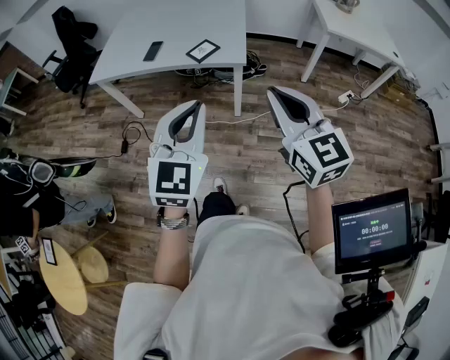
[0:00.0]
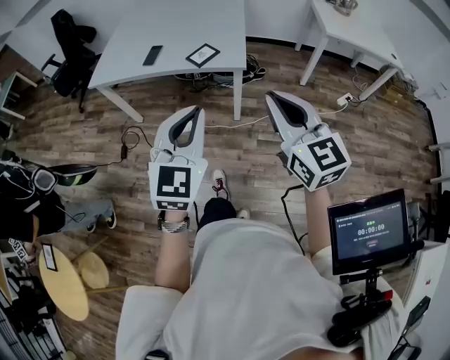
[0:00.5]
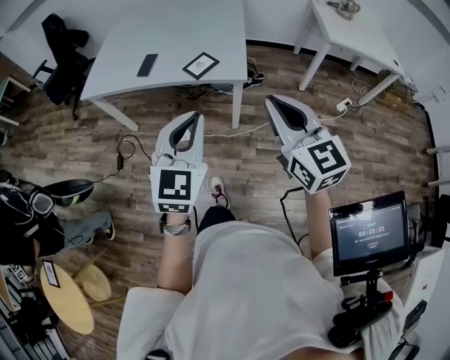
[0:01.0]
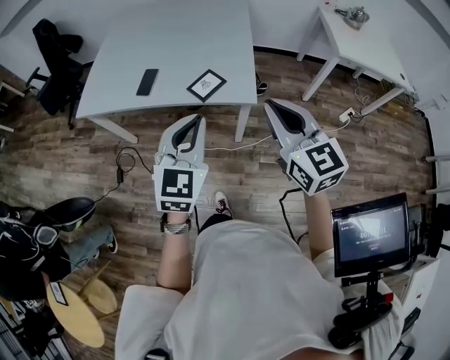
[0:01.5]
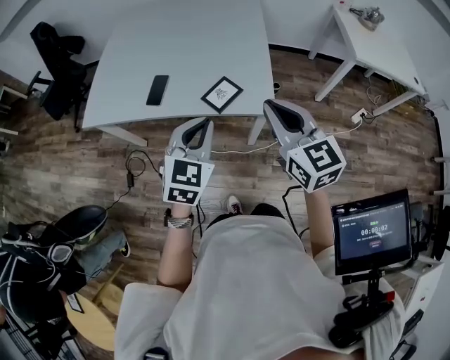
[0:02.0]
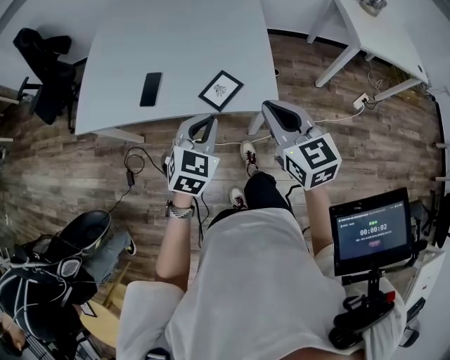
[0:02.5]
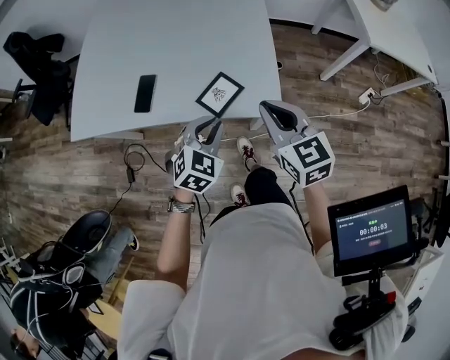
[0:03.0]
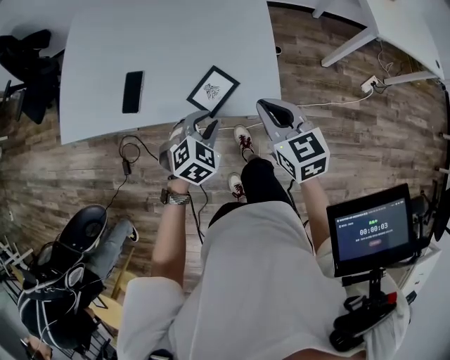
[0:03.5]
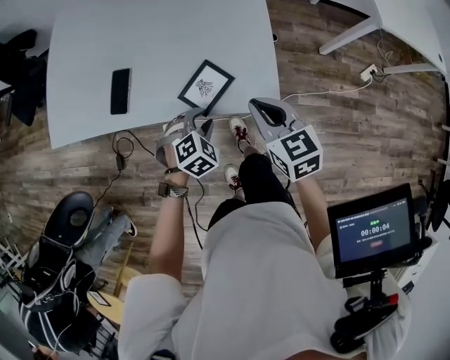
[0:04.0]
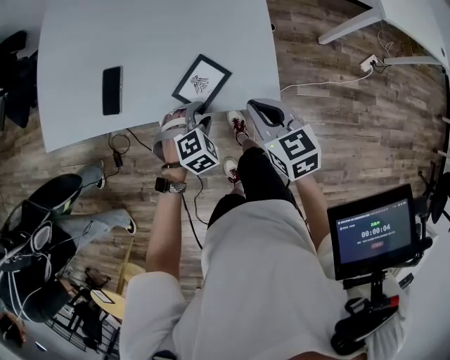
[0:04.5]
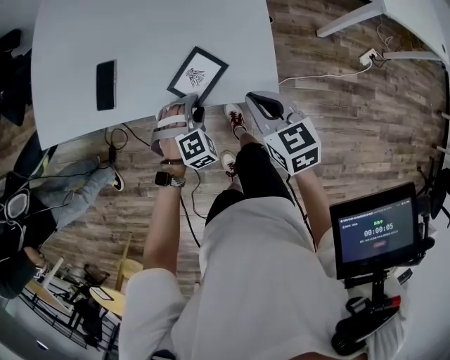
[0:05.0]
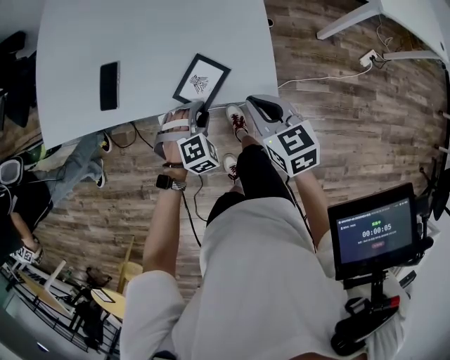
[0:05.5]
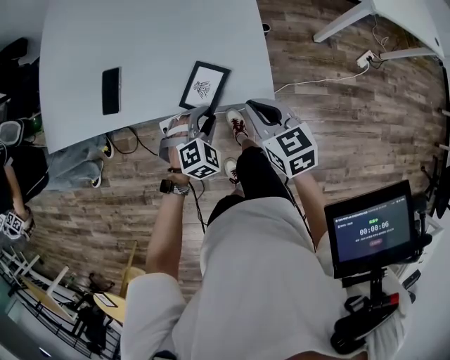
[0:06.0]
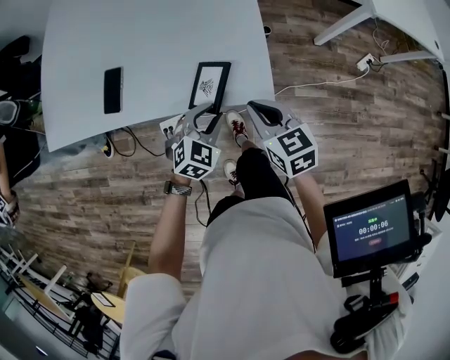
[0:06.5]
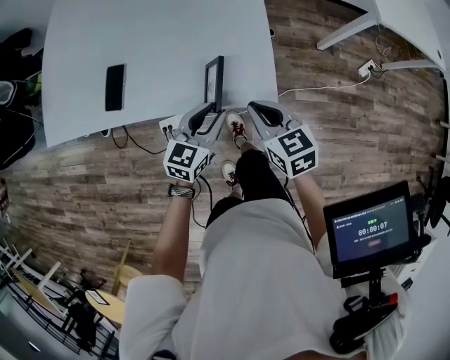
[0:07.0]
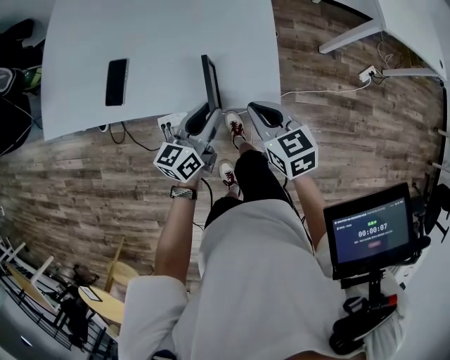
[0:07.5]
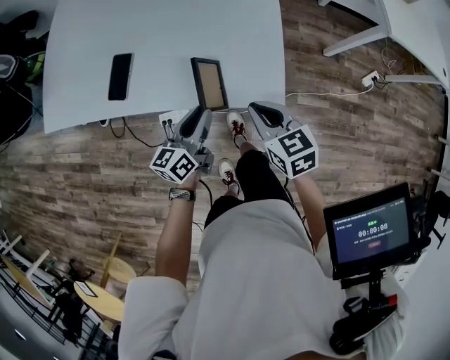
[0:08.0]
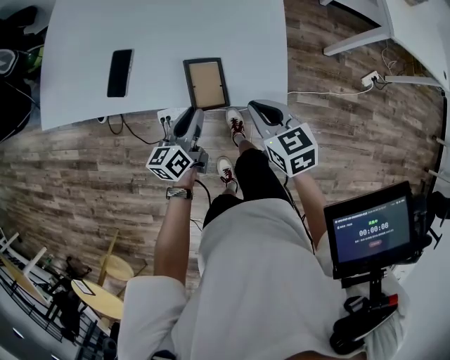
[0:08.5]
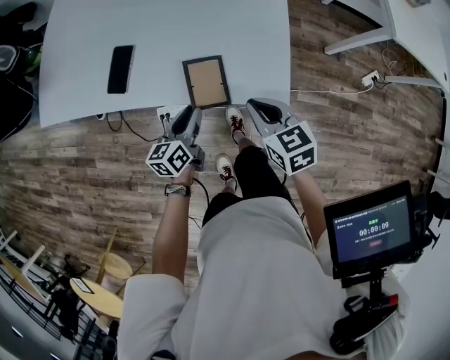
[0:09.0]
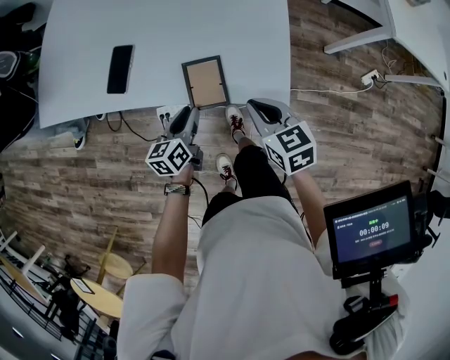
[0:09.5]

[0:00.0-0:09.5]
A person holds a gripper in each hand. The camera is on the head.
0:00.0 to 0:02.0: Both grippers move forward, approximately 35 cm.
0:02.0 to 0:04.0: Both grippers travel together downward and forward, roughly 30 cm. The right gripper swivels about 20 degrees; the left gripper tips its fingers downward by some 40 degrees, and opens its fingers.
0:05.5 to 0:07.5: The left gripper is displaced upward by roughly 10 cm, and twists approximately 80 degrees counterclockwise, seen from behind.
0:07.5 to 0:09.5: The left gripper goes roughly 10 cm to the left and downward, and swivels about 20 degrees.

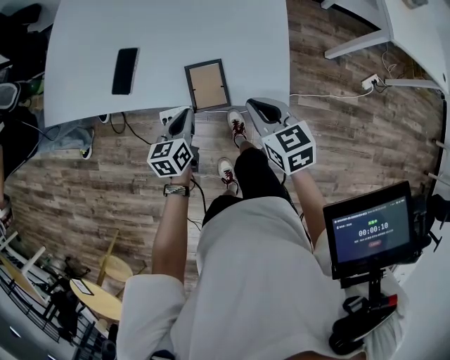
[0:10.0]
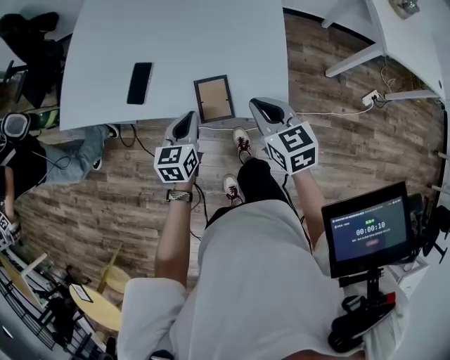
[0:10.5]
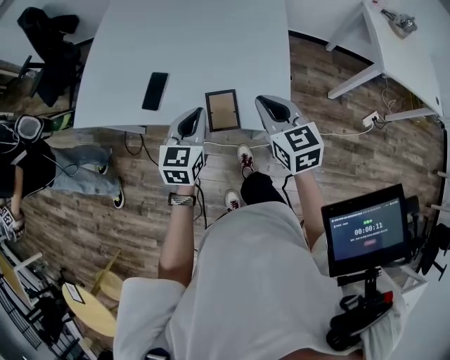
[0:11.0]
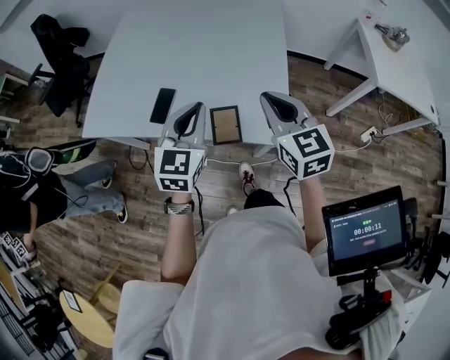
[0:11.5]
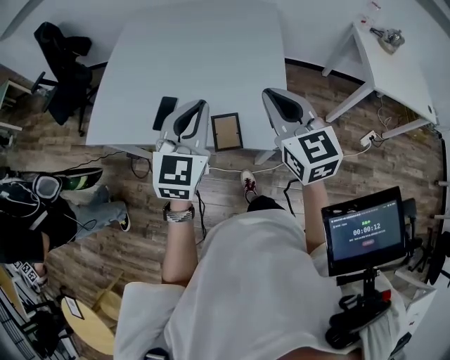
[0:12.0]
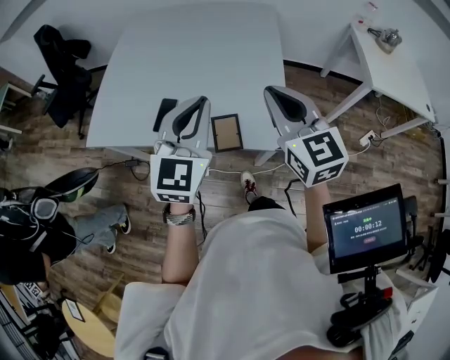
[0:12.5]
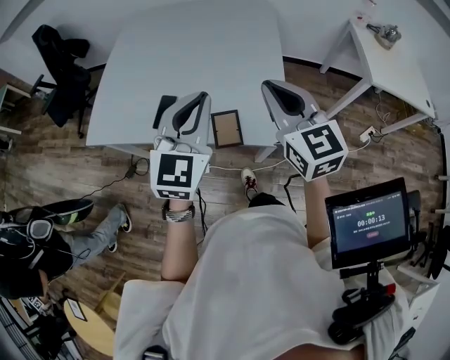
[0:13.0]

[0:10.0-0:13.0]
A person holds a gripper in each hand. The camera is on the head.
0:10.0 to 0:11.5: Both grippers move upward, some 25 cm. The right gripper changes its angle by approximately 30 degrees, while the left gripper swivels roughly 40 degrees.
0:11.5 to 0:13.0: The two grippers go roughly 10 cm upward.

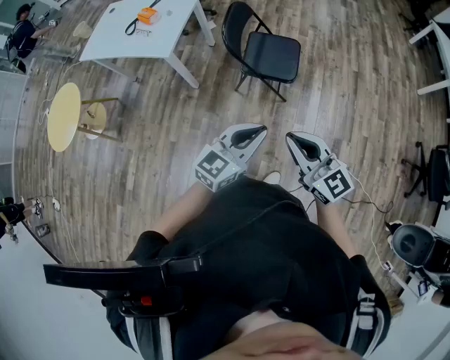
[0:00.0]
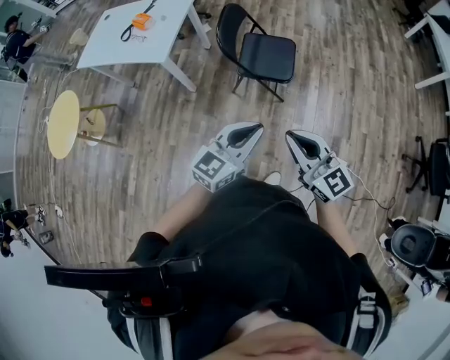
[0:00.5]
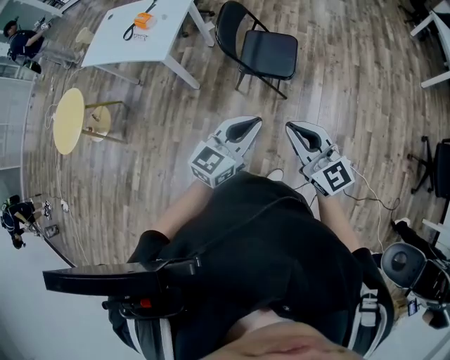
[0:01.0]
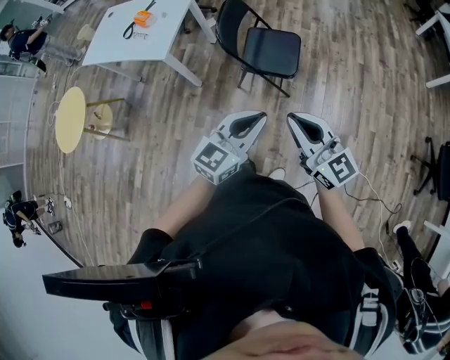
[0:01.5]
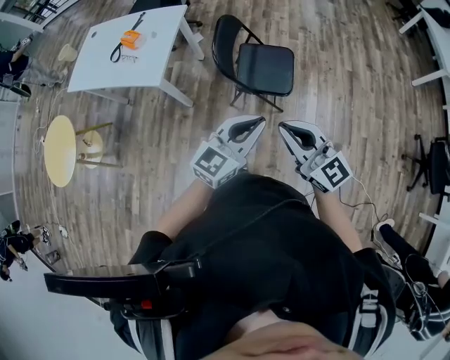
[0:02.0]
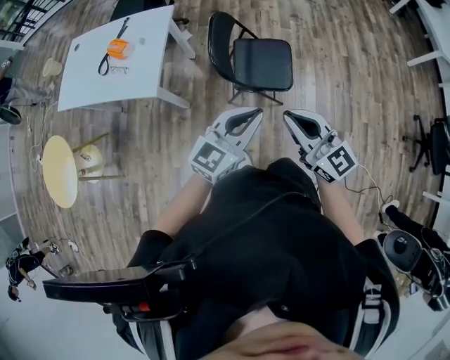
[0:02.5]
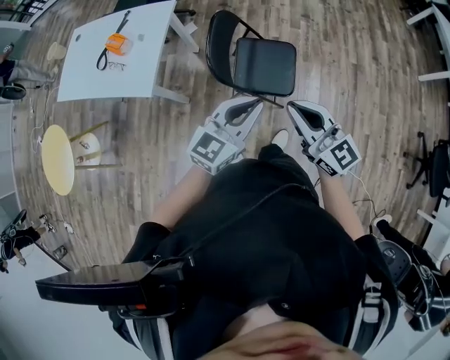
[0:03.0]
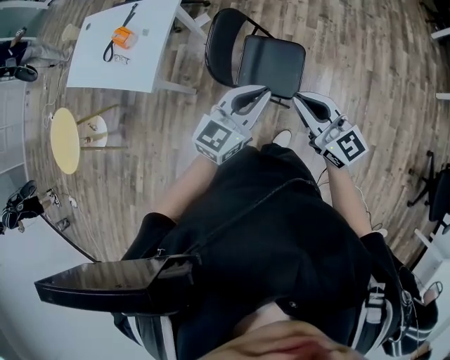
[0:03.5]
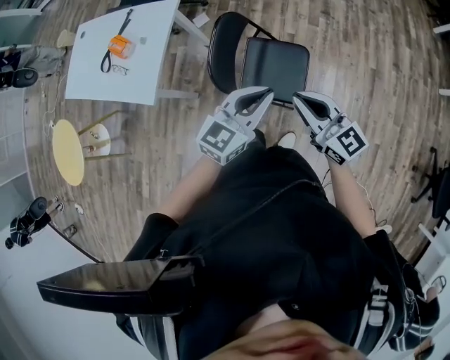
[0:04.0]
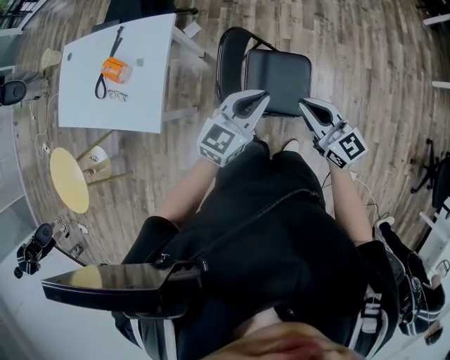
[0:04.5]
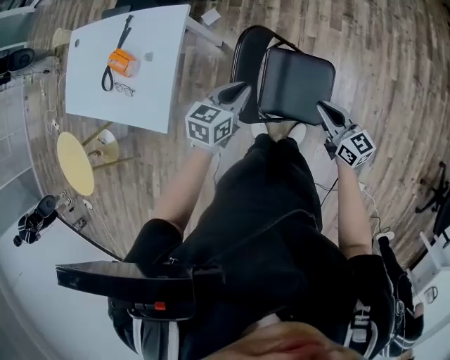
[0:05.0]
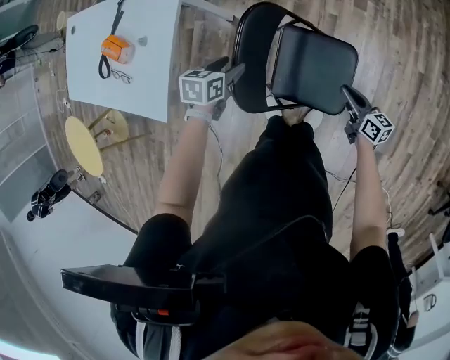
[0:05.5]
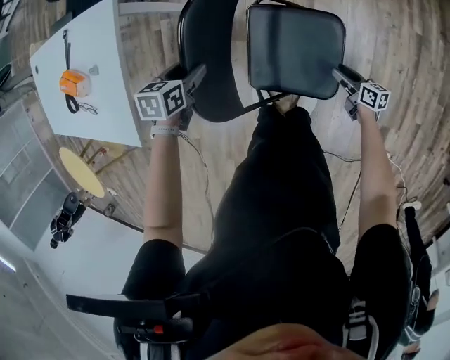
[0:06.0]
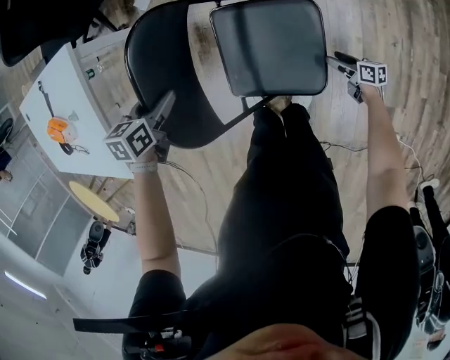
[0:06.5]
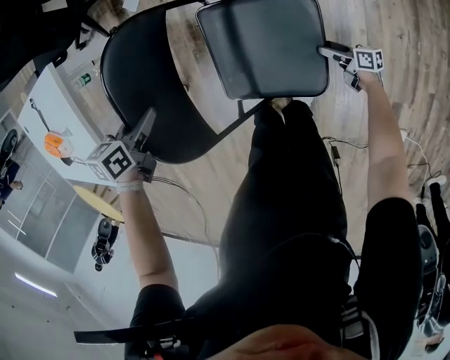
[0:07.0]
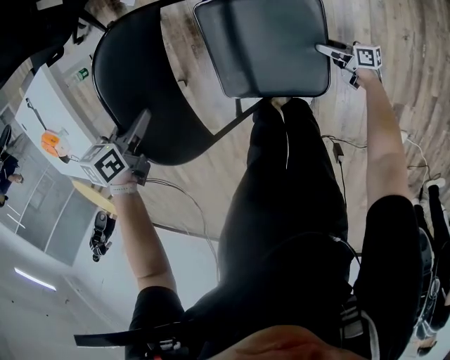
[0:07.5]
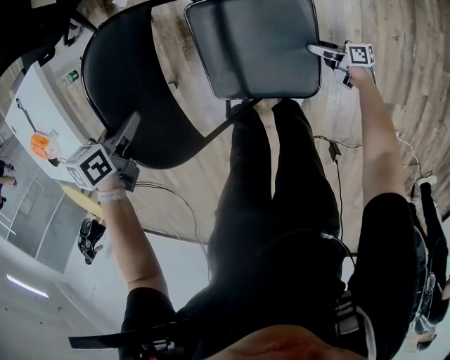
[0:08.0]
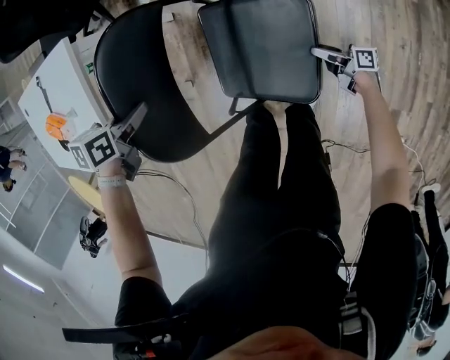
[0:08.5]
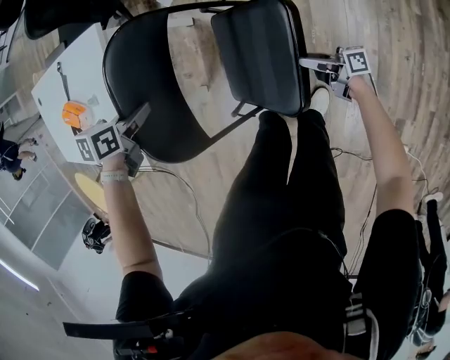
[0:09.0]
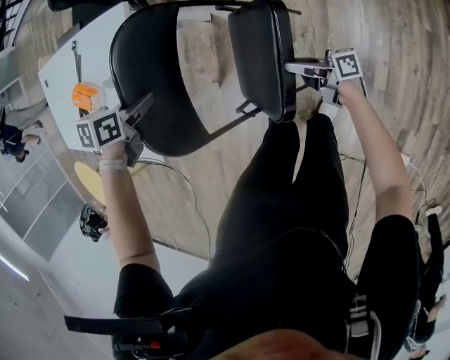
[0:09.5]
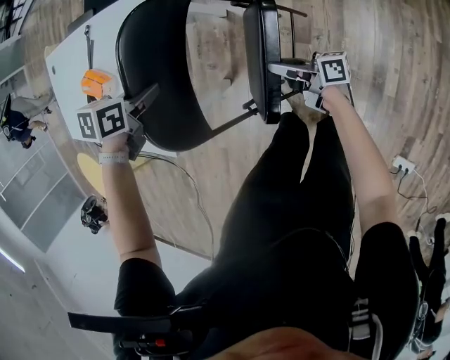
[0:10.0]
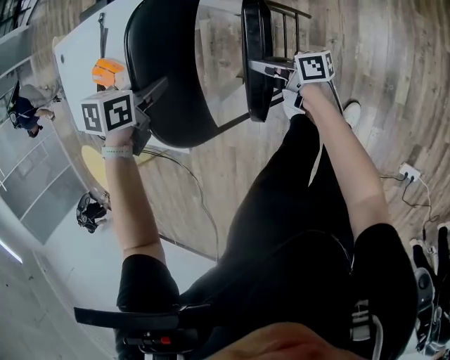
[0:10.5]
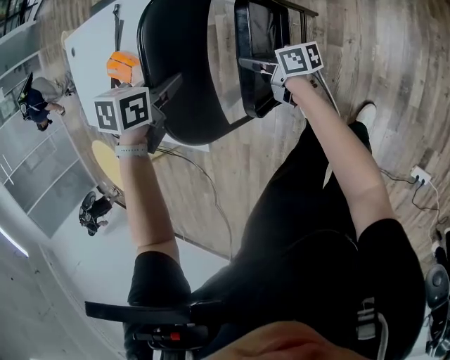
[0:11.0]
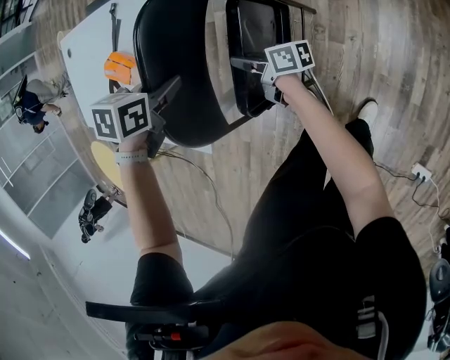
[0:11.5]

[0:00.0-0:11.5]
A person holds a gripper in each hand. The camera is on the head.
0:00.0 to 0:02.0: Both grippers move forward, about 15 cm.
0:02.0 to 0:04.0: The two grippers go about 30 cm forward.
0:04.0 to 0:06.0: The left gripper shifts about 50 cm downward, forward and to the left, tips its fingers downward by about 50 degrees, and opens up. Meanwhile the right gripper heads downward, covering approximately 60 cm, twists roughly 50 degrees clockwise, seen from behind, and opens up.
0:06.0 to 0:07.5: The right gripper heads downward, covering about 15 cm, and rotates some 30 degrees. The left gripper closes up.
0:07.5 to 0:09.5: The left gripper shifts by approximately 20 cm. The right gripper heads upward, covering some 30 cm, swivels roughly 30 degrees, and closes.
0:09.5 to 0:11.5: The right gripper shifts by approximately 35 cm; the left gripper moves approximately 10 cm.

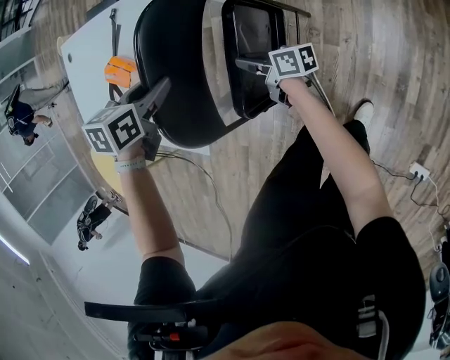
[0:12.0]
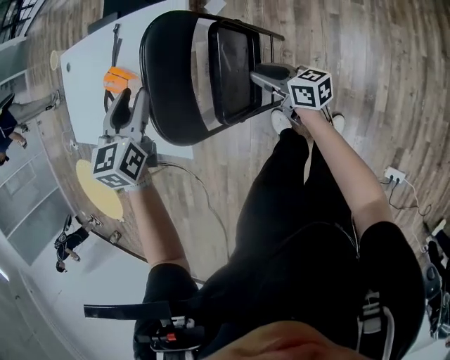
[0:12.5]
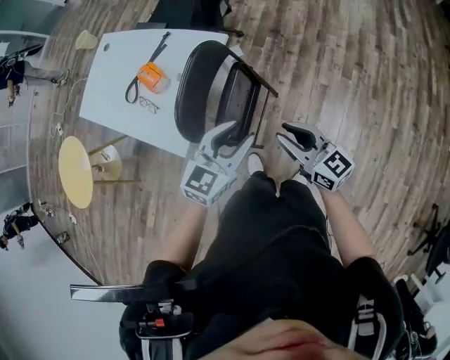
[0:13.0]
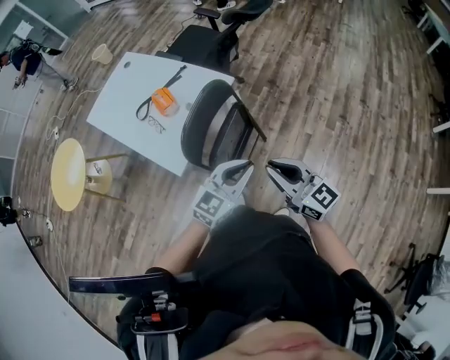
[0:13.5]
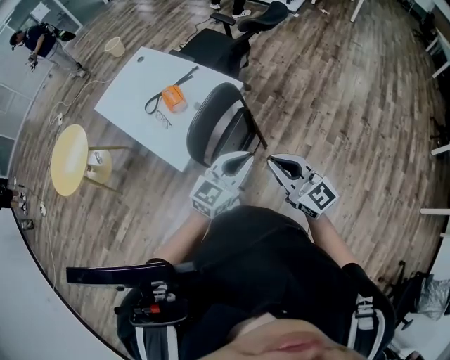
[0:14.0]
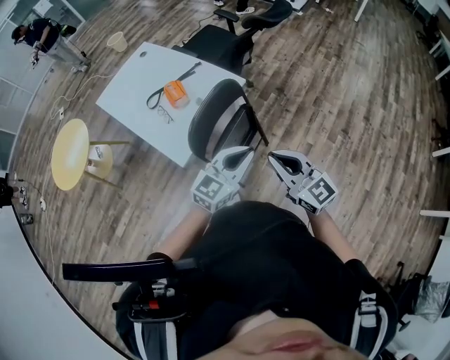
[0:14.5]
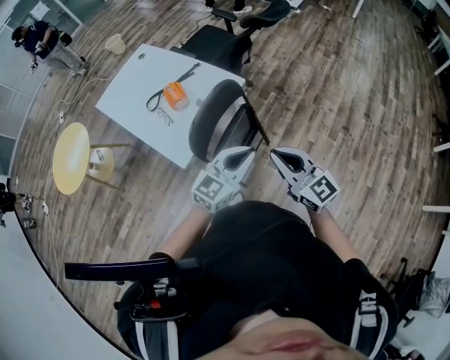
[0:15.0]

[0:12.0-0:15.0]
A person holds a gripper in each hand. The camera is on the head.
0:12.0 to 0:13.5: The left gripper heads backward, upward and to the right, covering roughly 40 cm, angles its fingers upward, by approximately 50 degrees, and closes. The right gripper is displaced upward and backward by approximately 50 cm, and rotates around the line of its fingers by about 60 degrees, counterclockwise from behind.
0:13.5 to 0:15.0: The grippers move only a little.
